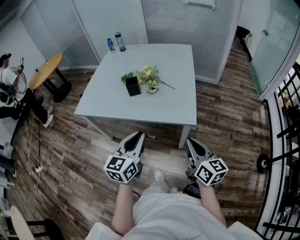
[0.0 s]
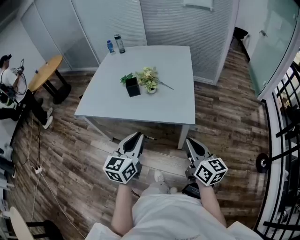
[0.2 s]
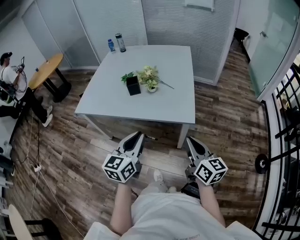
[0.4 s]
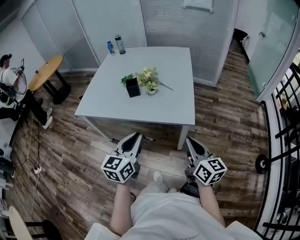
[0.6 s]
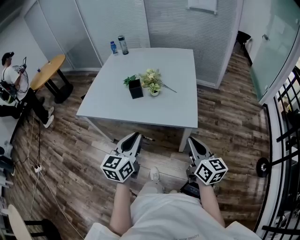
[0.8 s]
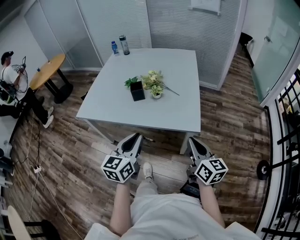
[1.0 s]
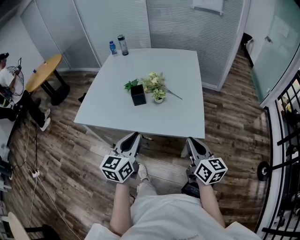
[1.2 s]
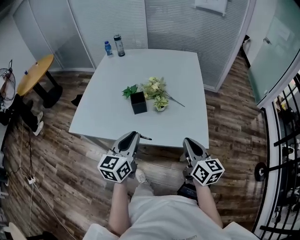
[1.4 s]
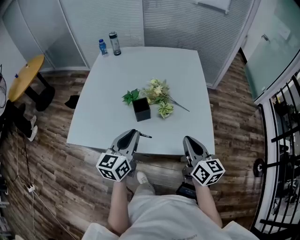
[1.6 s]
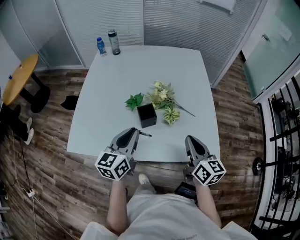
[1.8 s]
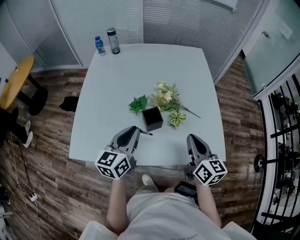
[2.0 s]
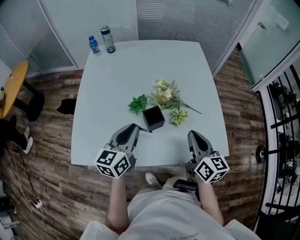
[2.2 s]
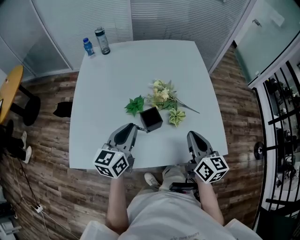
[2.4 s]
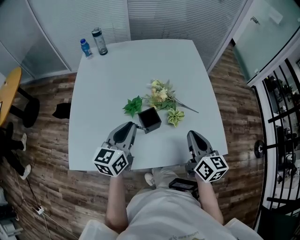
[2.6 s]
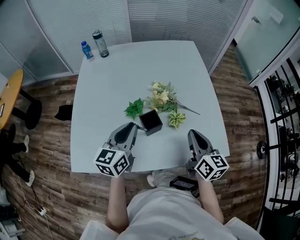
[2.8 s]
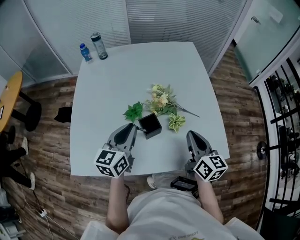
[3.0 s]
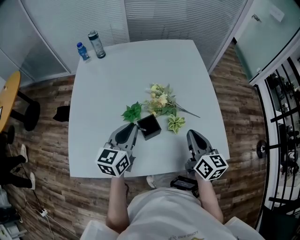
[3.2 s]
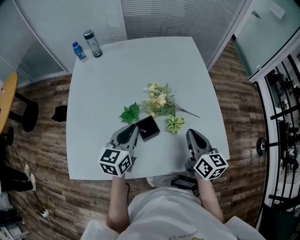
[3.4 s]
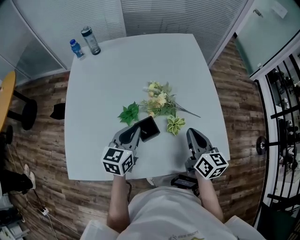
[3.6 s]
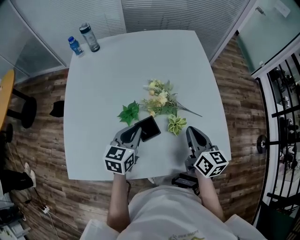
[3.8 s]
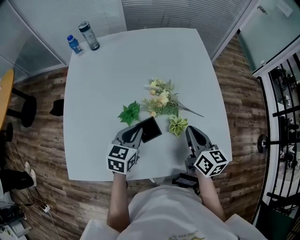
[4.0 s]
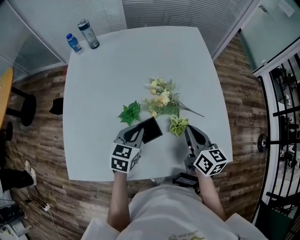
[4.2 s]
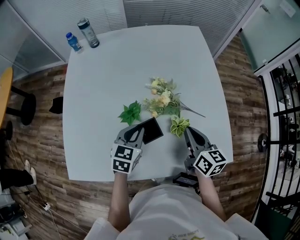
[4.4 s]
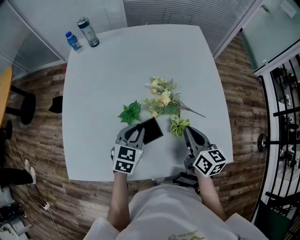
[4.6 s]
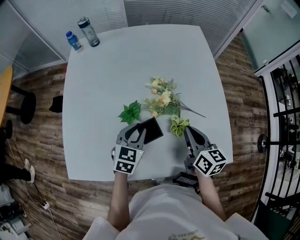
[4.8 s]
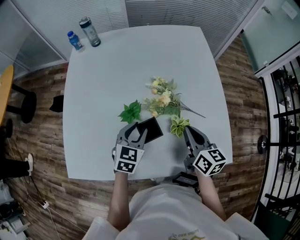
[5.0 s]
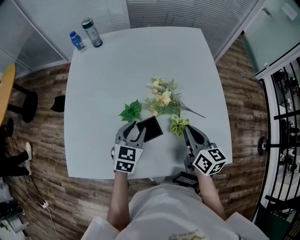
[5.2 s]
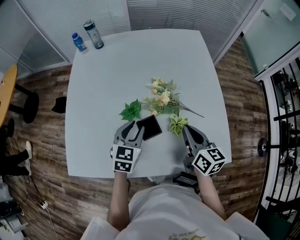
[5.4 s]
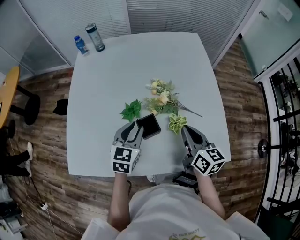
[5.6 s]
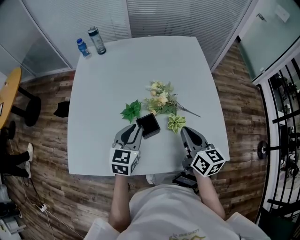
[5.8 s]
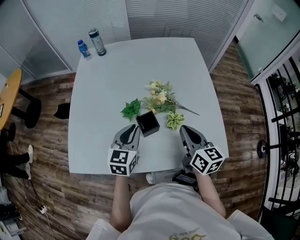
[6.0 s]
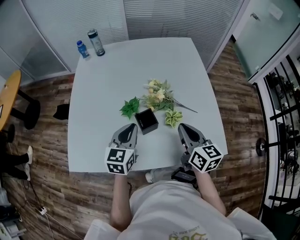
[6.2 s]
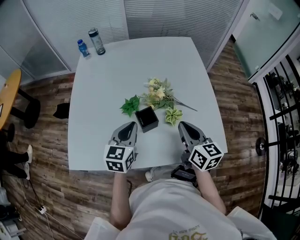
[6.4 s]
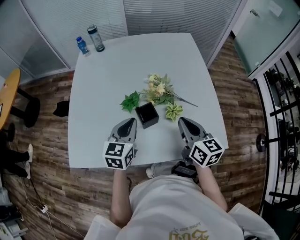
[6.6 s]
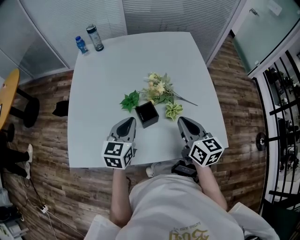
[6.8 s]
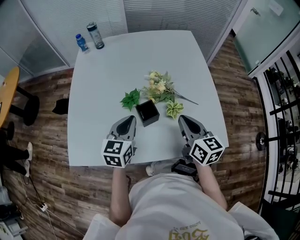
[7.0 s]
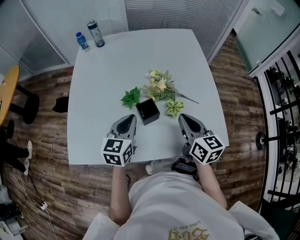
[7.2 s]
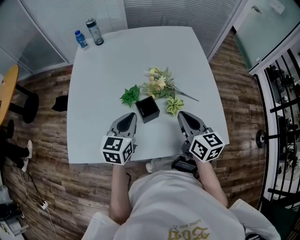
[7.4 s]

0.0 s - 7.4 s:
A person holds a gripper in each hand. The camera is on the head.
0.0 s - 1.4 s: Both grippers move forward and to the left, approximately 20 cm.
1.4 s - 3.0 s: Both grippers travel together forward and to the left, approximately 25 cm.
3.0 s - 4.4 s: The left gripper goes approximately 15 cm downward and forward, and turns by about 30 degrees, while the right gripper moves forward and downward, some 10 cm.
4.4 s - 6.0 s: The grippers both shift upward and backward by about 10 cm. The left gripper opens, then closes once more.
6.0 s - 7.4 s: The grippers make only small movements.

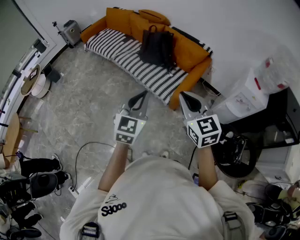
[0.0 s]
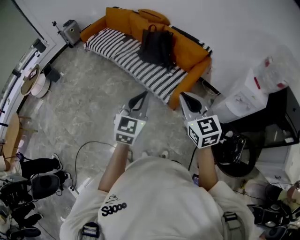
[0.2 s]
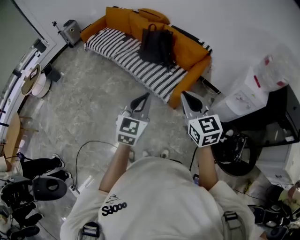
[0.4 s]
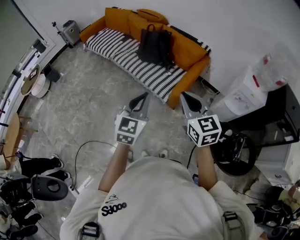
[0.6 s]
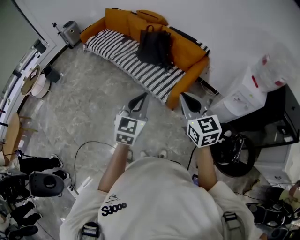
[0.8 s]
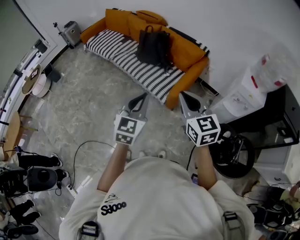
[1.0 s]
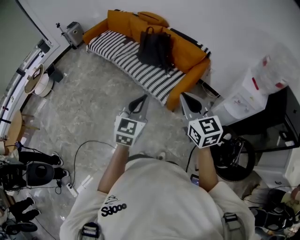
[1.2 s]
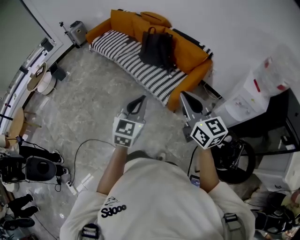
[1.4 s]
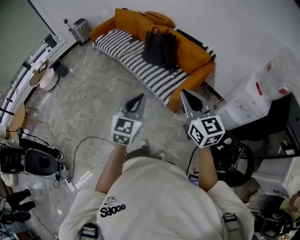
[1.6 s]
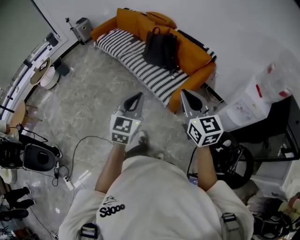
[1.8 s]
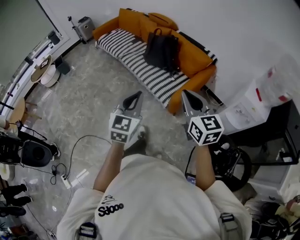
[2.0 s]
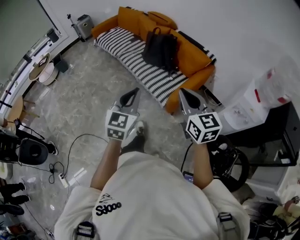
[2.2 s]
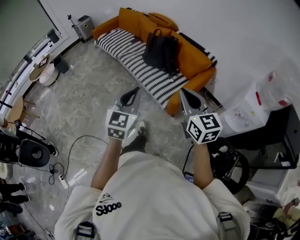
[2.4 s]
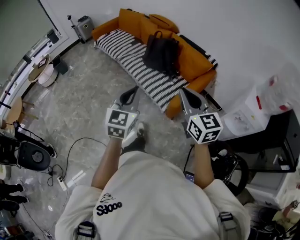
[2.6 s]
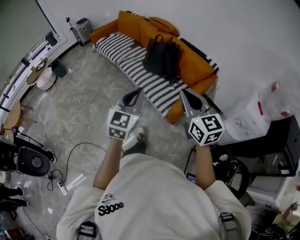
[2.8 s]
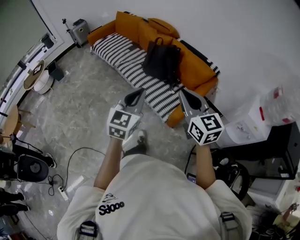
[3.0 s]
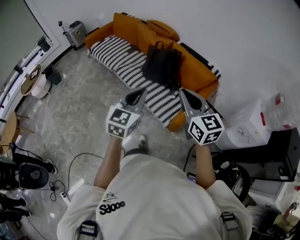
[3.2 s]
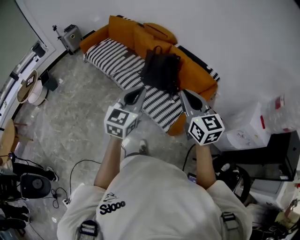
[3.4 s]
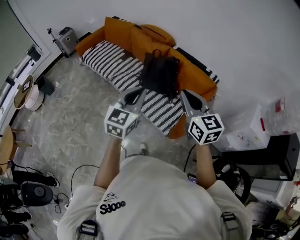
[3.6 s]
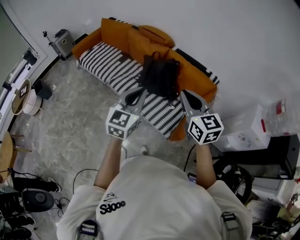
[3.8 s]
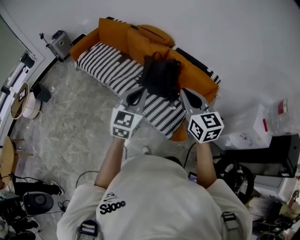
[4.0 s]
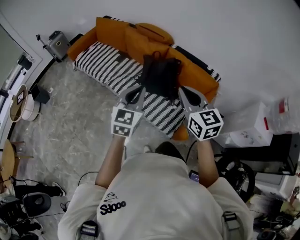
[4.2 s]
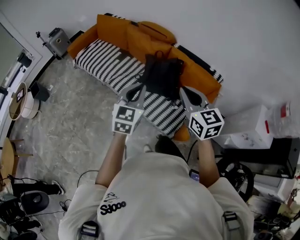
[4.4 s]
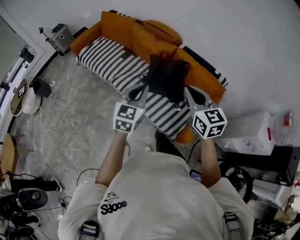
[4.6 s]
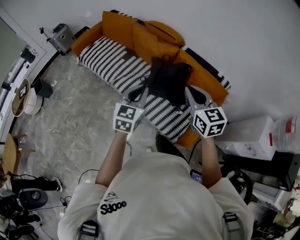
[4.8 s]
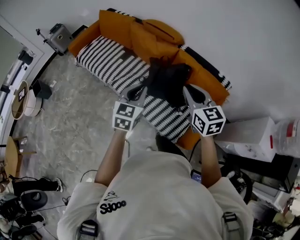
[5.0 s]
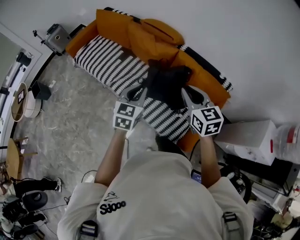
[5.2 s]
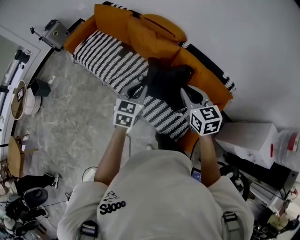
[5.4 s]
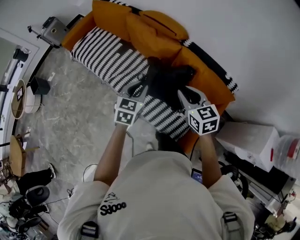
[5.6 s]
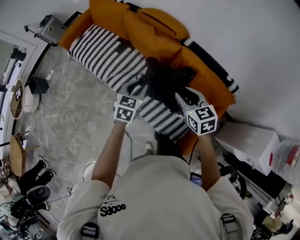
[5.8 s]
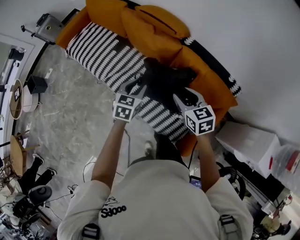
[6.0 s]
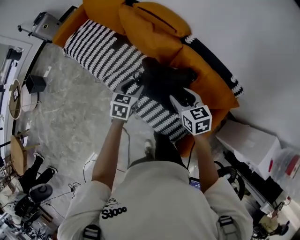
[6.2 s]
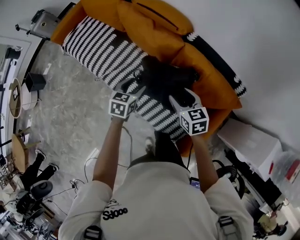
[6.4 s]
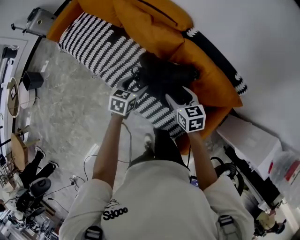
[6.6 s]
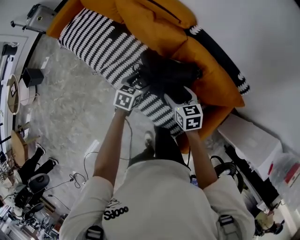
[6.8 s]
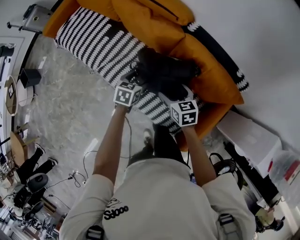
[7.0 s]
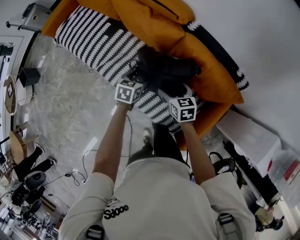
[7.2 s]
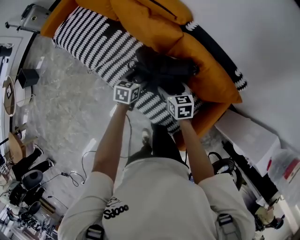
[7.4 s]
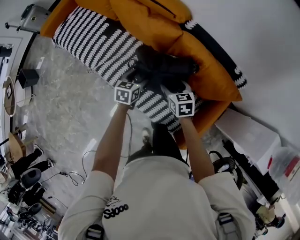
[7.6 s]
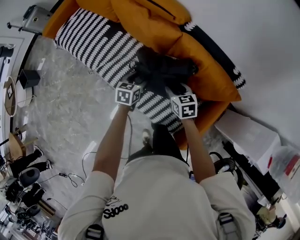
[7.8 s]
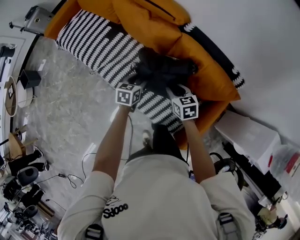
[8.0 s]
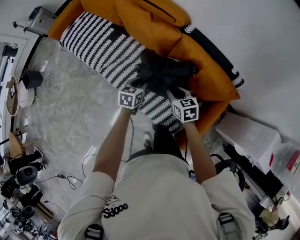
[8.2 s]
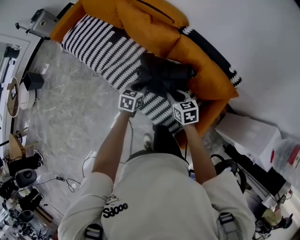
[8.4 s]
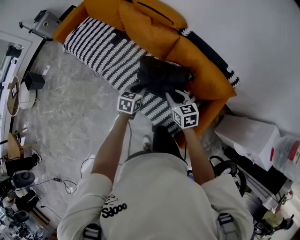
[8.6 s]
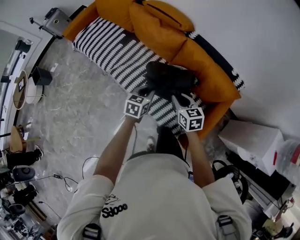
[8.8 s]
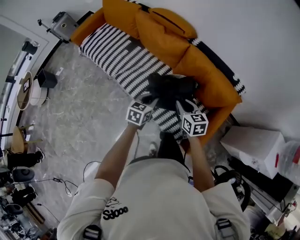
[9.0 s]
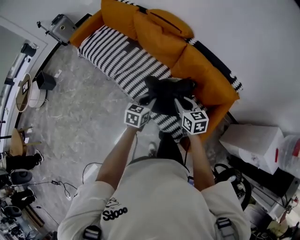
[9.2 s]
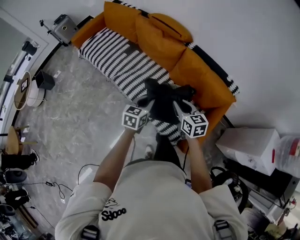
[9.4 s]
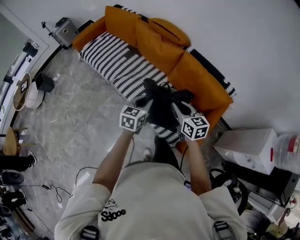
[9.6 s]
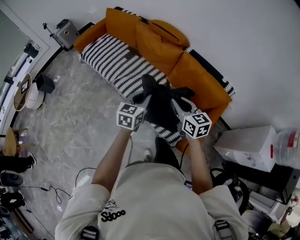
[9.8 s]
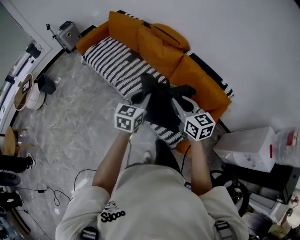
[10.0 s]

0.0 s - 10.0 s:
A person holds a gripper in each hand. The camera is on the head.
0.0 s - 1.4 s: Both grippers travel together to the right, some 5 cm. The right gripper changes its angle by roughly 20 degrees.
1.4 s - 2.8 s: Both grippers move forward, some 10 cm.
2.8 s - 4.2 s: Both grippers move forward, roughly 35 cm.
4.2 s - 5.8 s: The two grippers go approximately 35 cm forward and downward. The left gripper swivels approximately 30 degrees. The right gripper changes its angle by roughly 20 degrees.
5.8 s - 7.2 s: The grippers both shift downward by some 20 cm. The left gripper changes its angle by approximately 20 degrees, and opens up; the right gripper opens.
7.2 s - 8.6 s: The grippers both shift backward and upward by about 15 cm. The left gripper closes up. Meanwhile the right gripper closes up.
8.6 s - 10.0 s: The grippers both shift upward and backward by about 25 cm. The right gripper turns by about 20 degrees; the left gripper swivels about 20 degrees.

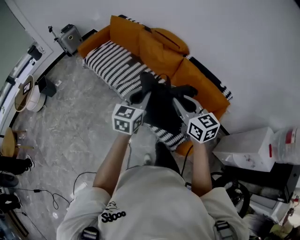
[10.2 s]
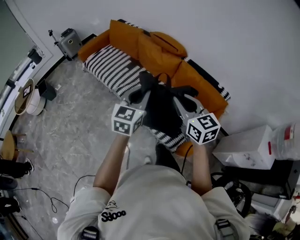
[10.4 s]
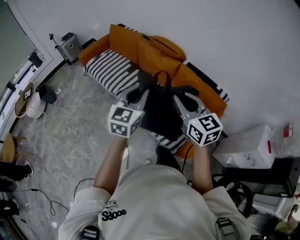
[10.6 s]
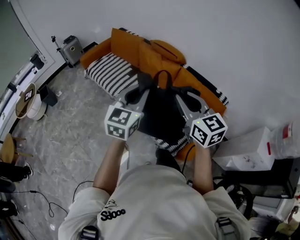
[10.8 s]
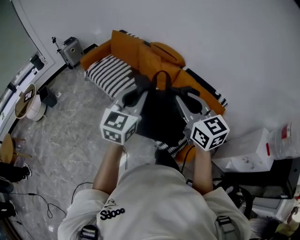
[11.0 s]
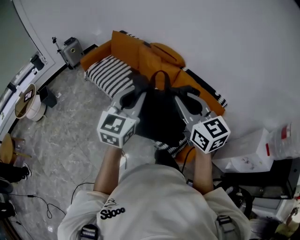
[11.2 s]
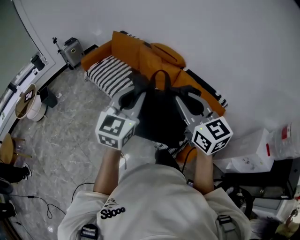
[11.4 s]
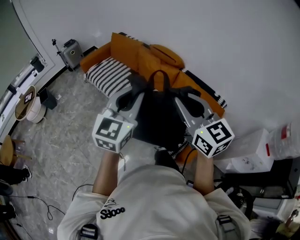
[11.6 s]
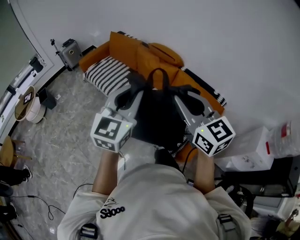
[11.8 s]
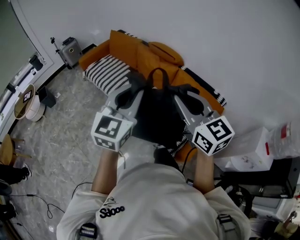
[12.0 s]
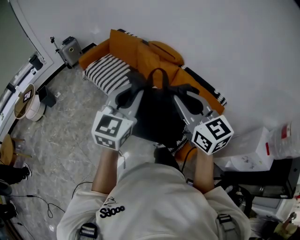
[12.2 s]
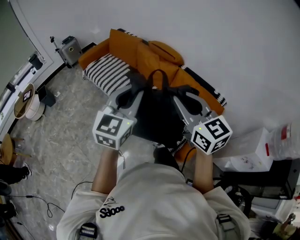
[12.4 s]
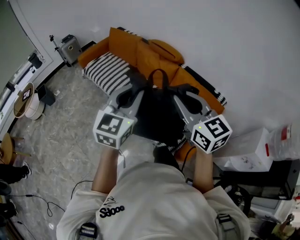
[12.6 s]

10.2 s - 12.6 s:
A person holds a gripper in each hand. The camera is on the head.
10.2 s - 11.4 s: Both grippers travel together upward and backward, about 15 cm.
11.4 s - 12.6 s: The grippers make only small movements.

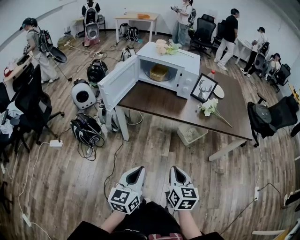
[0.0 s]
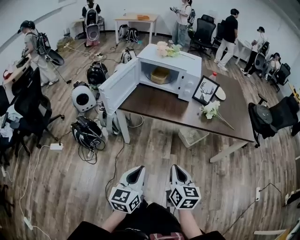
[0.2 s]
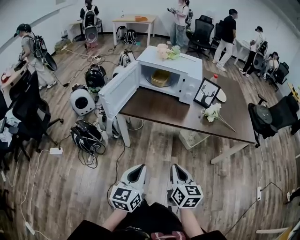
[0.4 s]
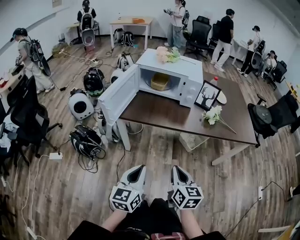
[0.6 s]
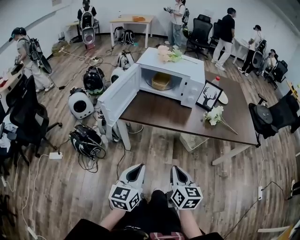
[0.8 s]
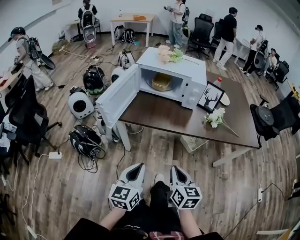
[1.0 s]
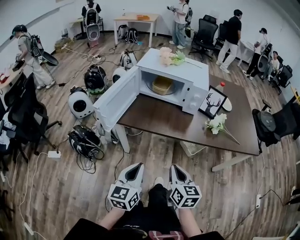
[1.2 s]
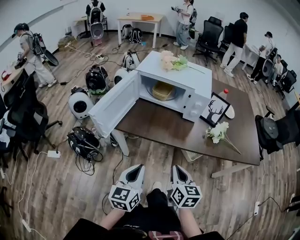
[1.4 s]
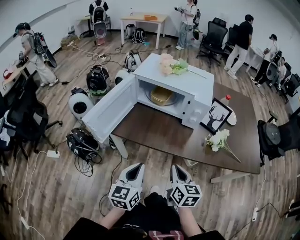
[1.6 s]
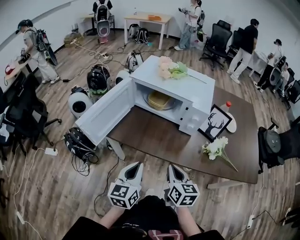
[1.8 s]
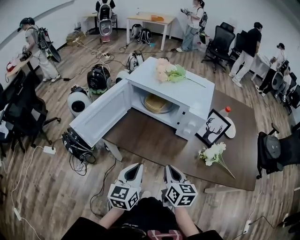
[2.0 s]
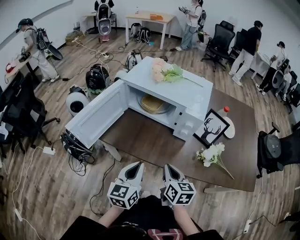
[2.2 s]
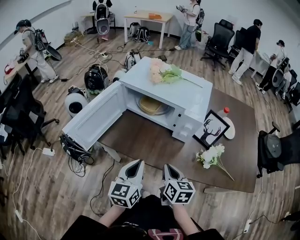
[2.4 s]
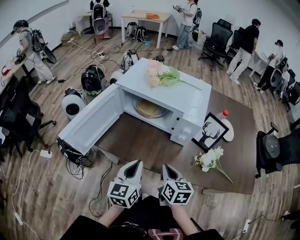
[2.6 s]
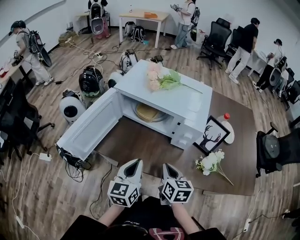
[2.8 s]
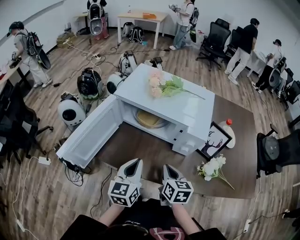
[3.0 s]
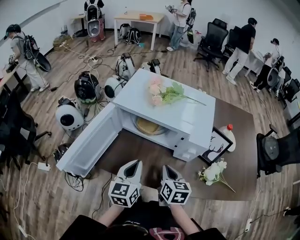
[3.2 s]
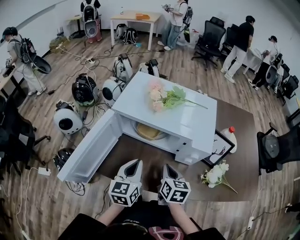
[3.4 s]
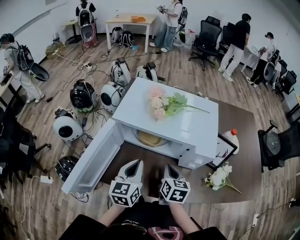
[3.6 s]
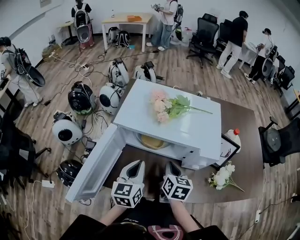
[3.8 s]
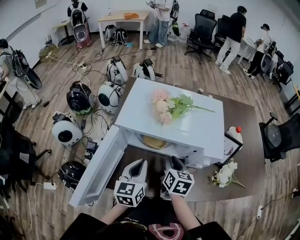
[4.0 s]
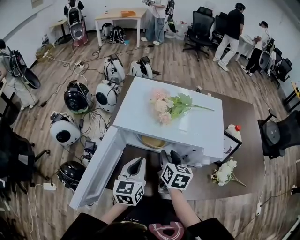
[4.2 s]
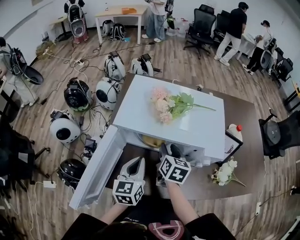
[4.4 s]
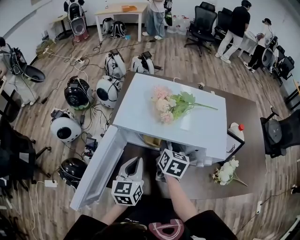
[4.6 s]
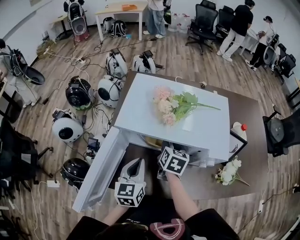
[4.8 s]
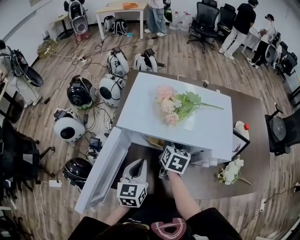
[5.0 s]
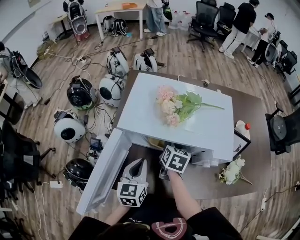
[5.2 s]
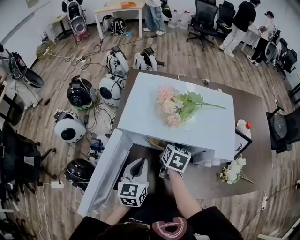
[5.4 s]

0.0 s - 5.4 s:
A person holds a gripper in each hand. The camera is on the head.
0.0 s - 1.4 s: The grippers both shift forward by some 20 cm.
1.4 s - 2.8 s: The left gripper shifts about 25 cm forward and to the right, while the right gripper goes some 20 cm forward.
2.8 s - 4.0 s: The grippers both shift forward and to the left by some 20 cm. The right gripper opens.
4.0 s - 5.4 s: The right gripper goes some 10 cm forward.
